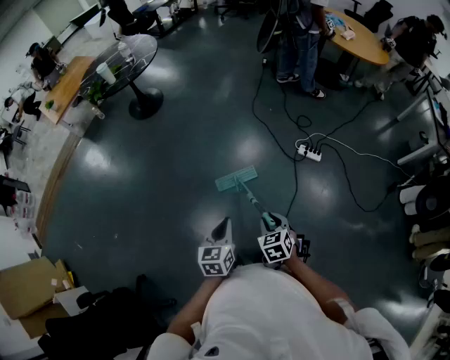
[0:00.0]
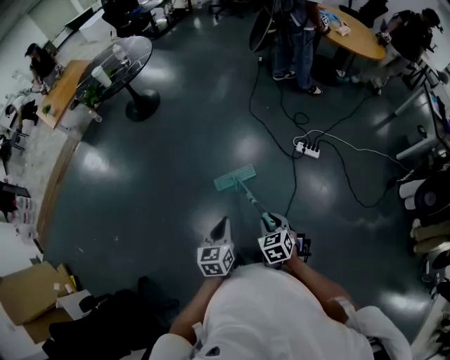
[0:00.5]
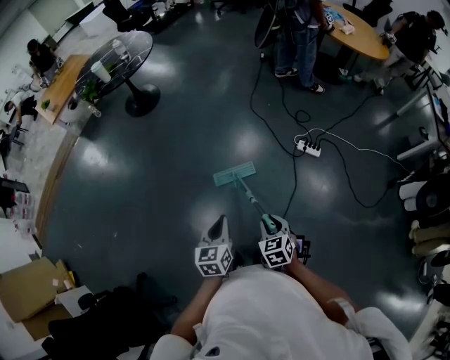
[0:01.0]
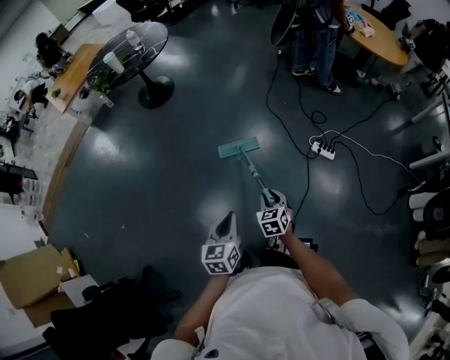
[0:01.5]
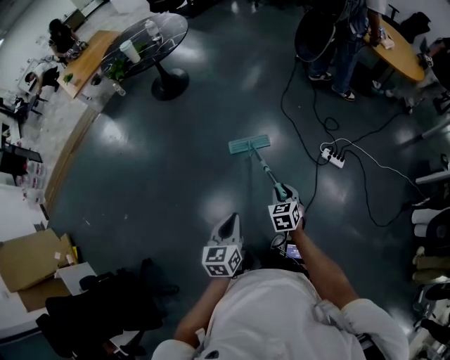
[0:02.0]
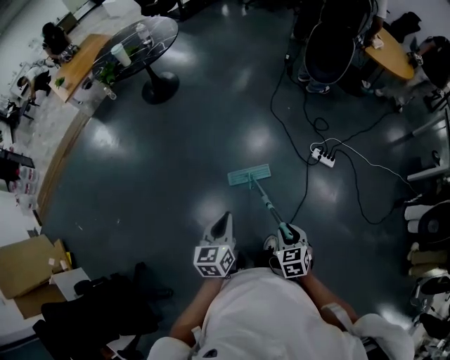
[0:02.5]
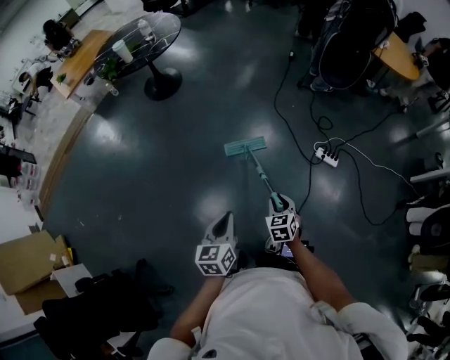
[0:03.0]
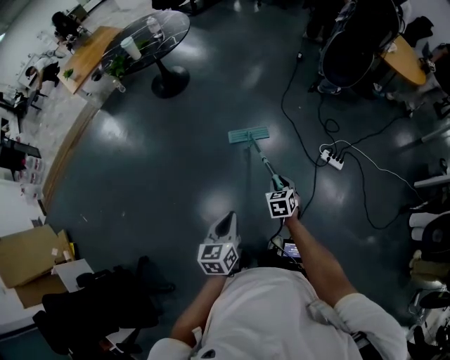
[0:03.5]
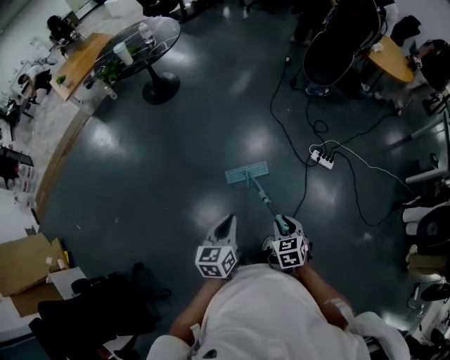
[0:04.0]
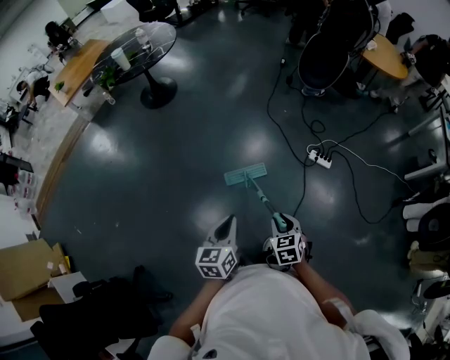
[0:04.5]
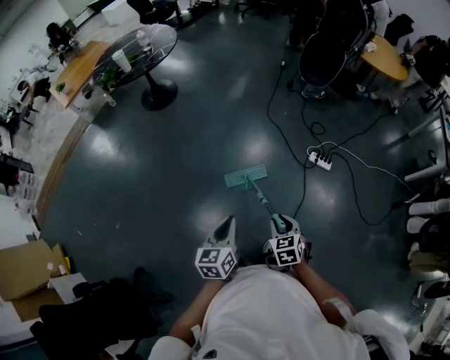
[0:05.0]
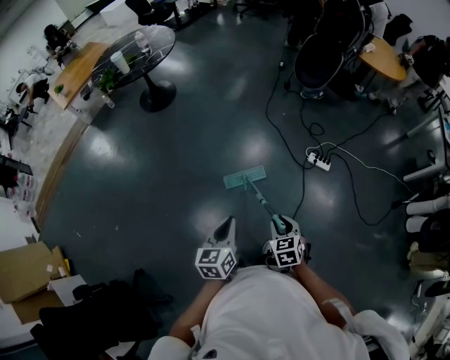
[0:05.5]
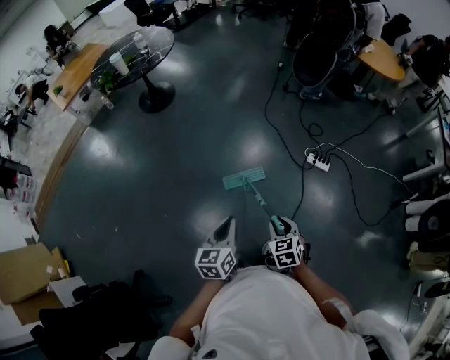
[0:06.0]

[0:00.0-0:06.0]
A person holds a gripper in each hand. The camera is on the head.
0:00.0 to 0:02.0: The right gripper moves forward, approximately 15 cm. Meanwhile the left gripper goes approximately 5 cm to the left.
0:02.0 to 0:04.0: The right gripper goes forward and backward, roughly 20 cm each way, reversing 2 times.
0:04.0 to 0:06.0: Both grippers stay about where they are.

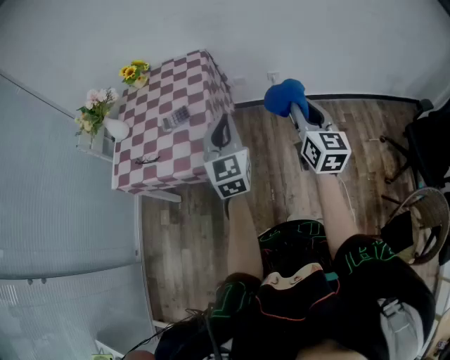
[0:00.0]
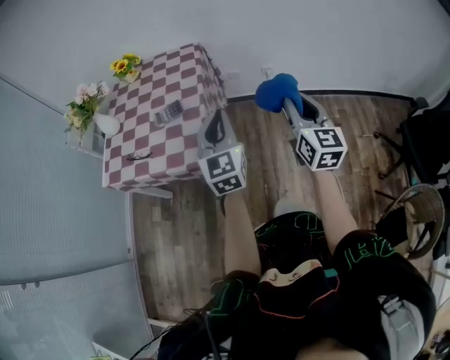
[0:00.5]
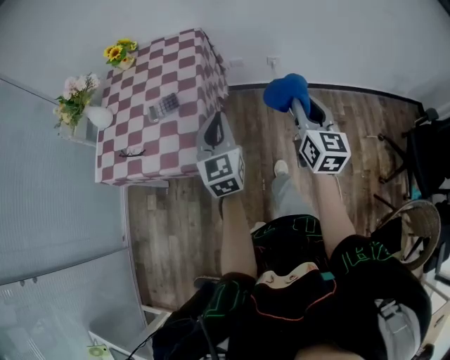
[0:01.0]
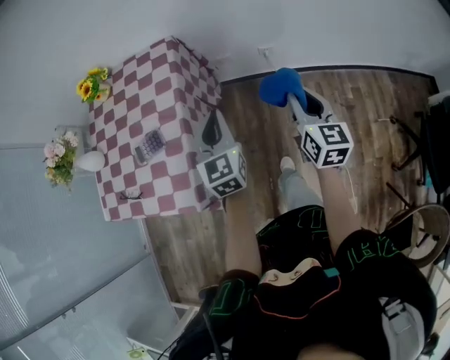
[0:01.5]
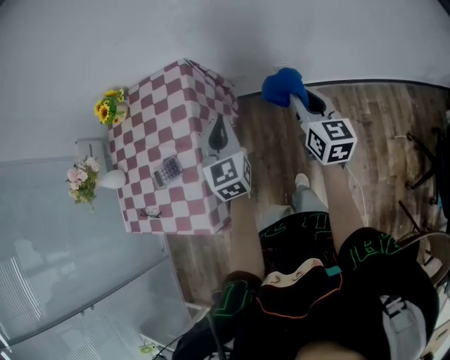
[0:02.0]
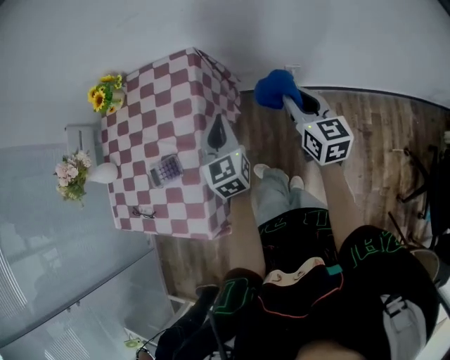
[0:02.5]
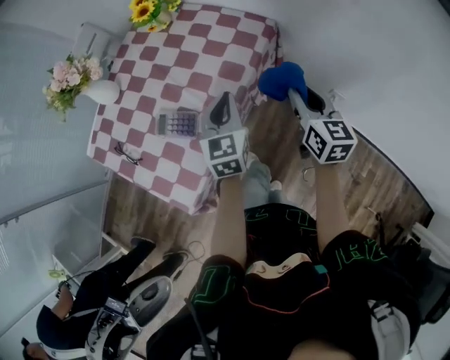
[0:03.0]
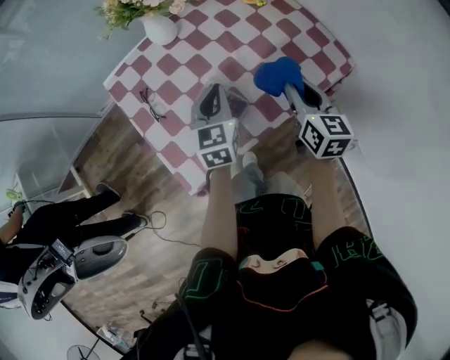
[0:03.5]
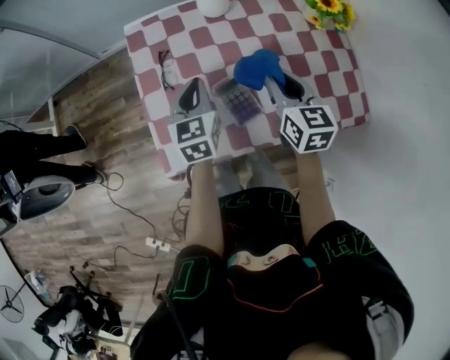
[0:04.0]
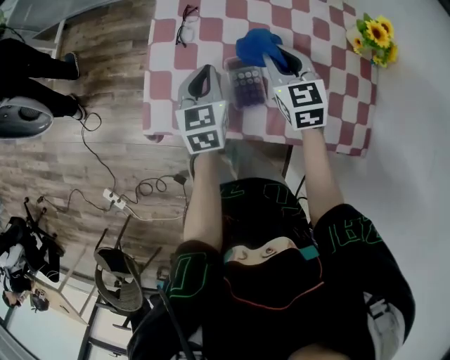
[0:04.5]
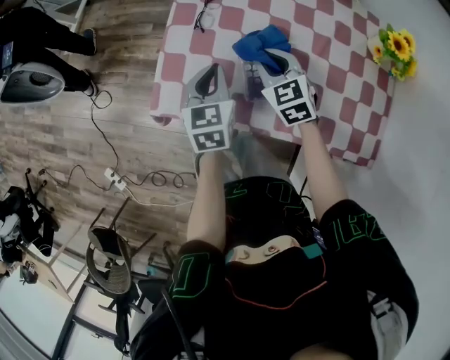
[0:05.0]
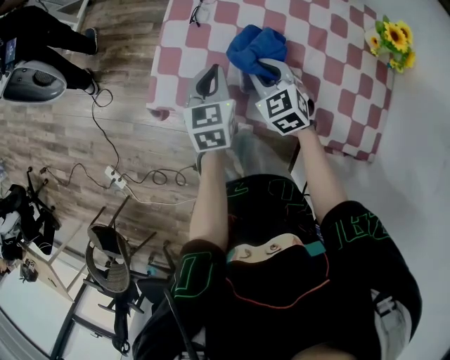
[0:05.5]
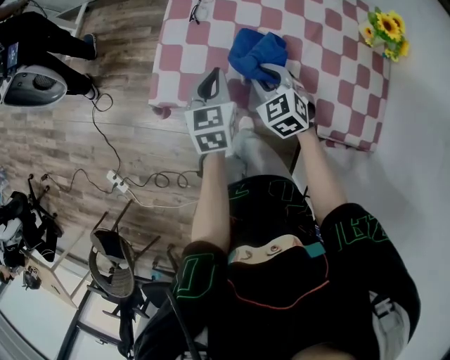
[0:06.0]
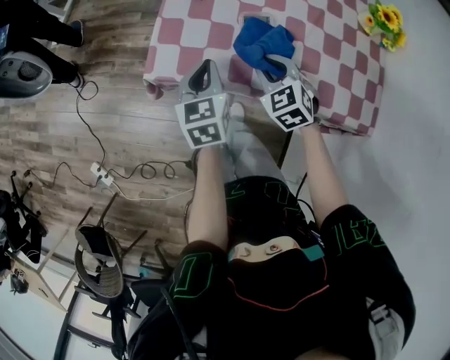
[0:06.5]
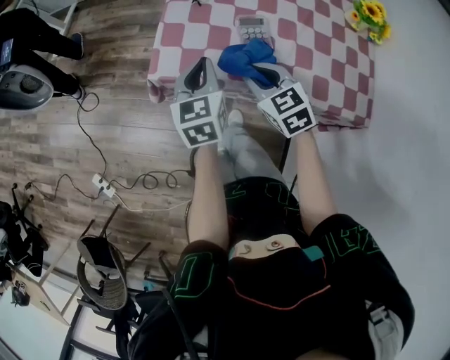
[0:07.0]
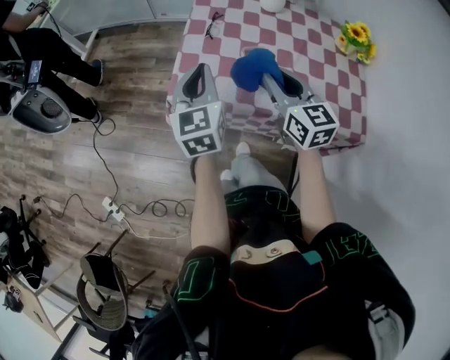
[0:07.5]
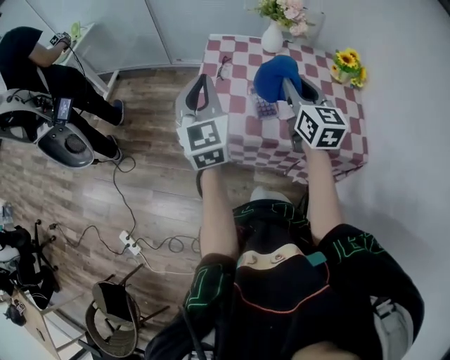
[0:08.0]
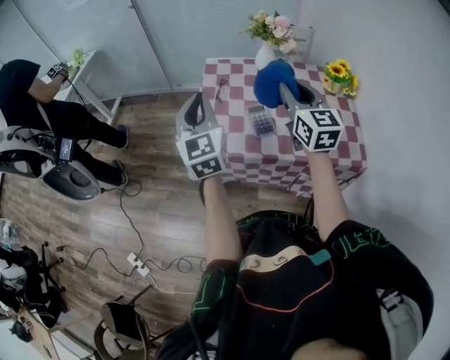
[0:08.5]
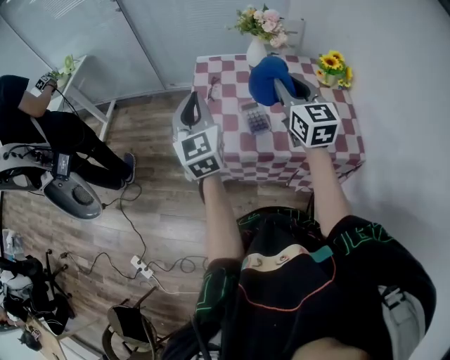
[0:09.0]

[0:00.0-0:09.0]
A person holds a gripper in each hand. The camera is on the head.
0:00.0 to 0:02.0: Both grippers move forward, approximately 35 cm.
0:02.0 to 0:04.5: The pair of grippers is taken about 50 cm. The left gripper changes its angle by about 90 degrees. Meanwhile the right gripper rotates roughly 110 degrees.
0:04.5 to 0:07.0: Both grippers move backward and to the left, about 20 cm.
0:07.0 to 0:09.0: Both grippers move upward, some 25 cm. The left gripper turns by some 30 degrees. The right gripper angles its fingers upward, by about 40 degrees.

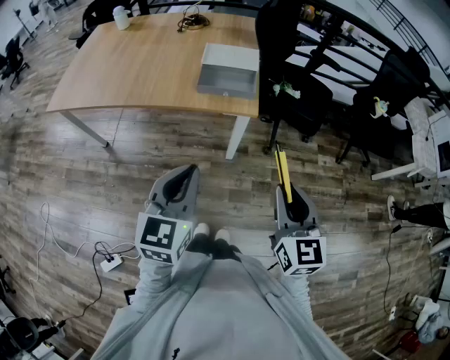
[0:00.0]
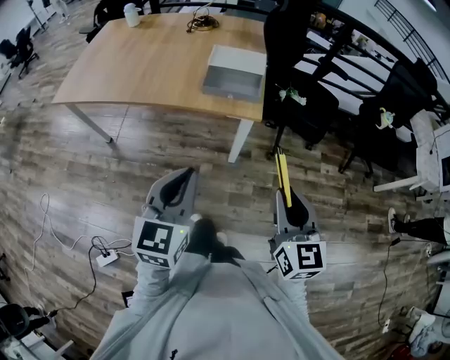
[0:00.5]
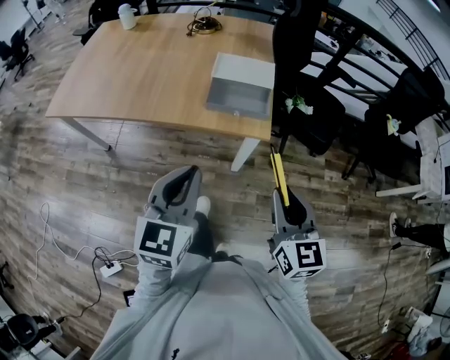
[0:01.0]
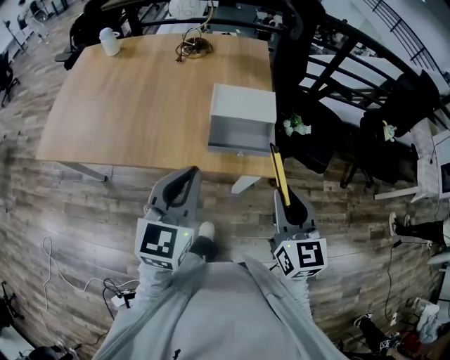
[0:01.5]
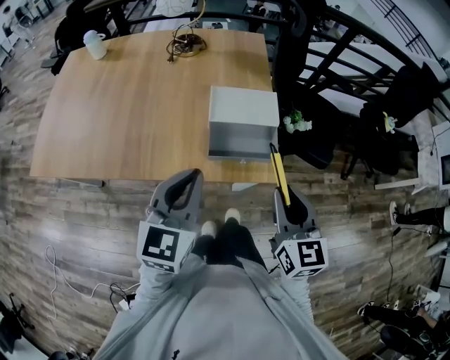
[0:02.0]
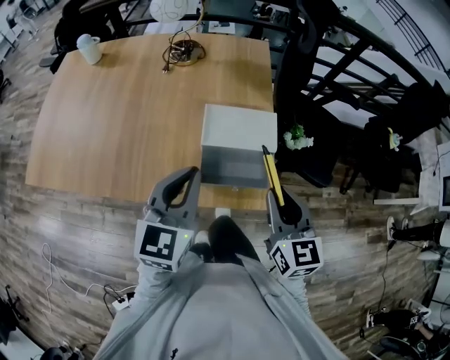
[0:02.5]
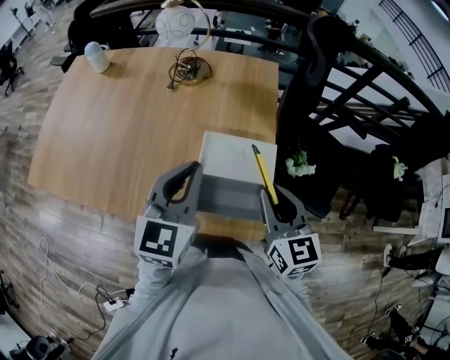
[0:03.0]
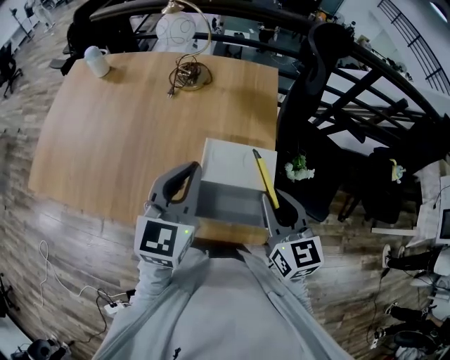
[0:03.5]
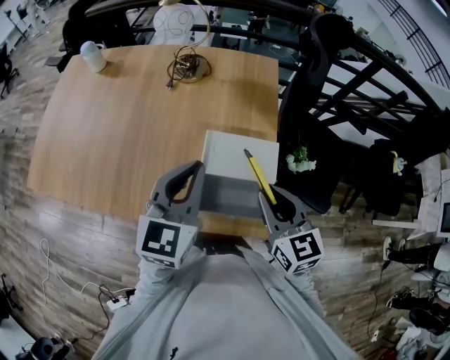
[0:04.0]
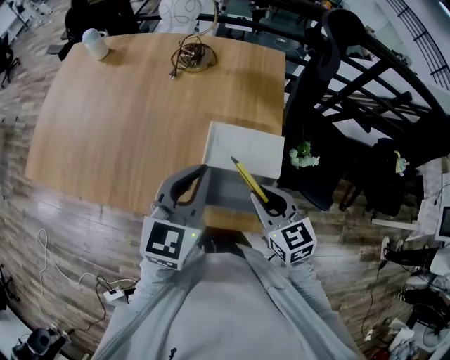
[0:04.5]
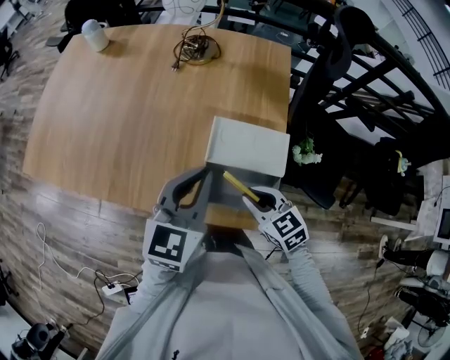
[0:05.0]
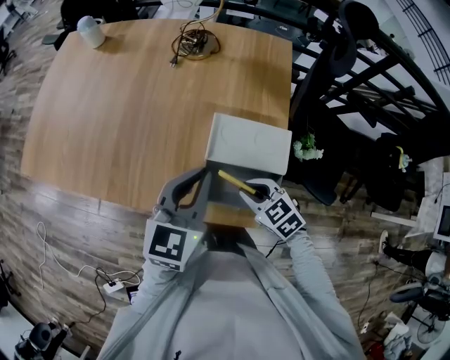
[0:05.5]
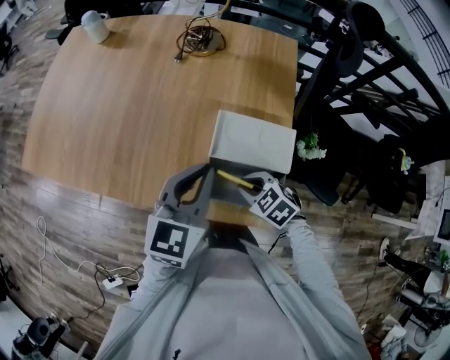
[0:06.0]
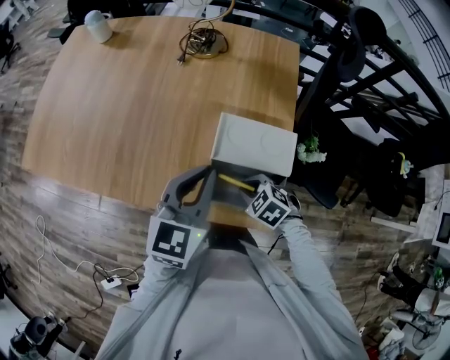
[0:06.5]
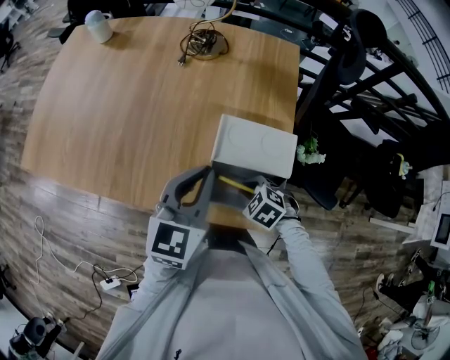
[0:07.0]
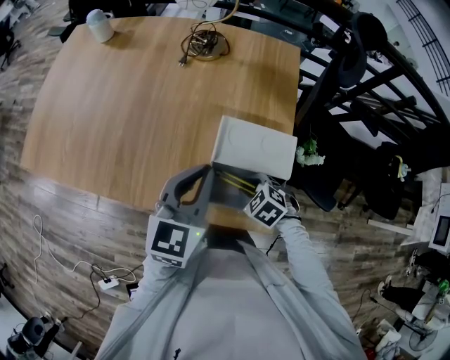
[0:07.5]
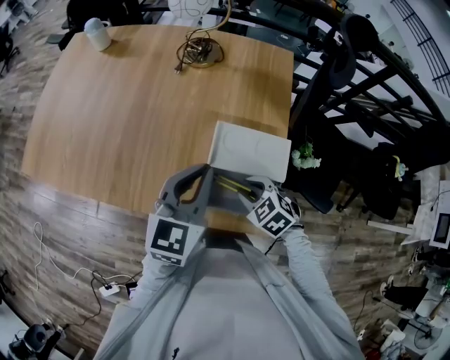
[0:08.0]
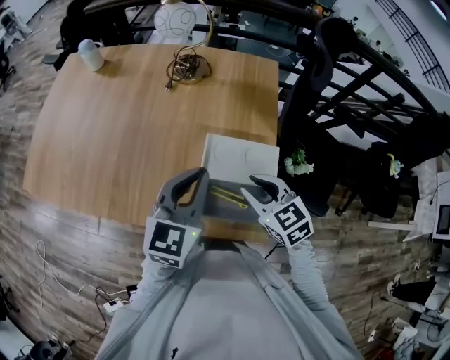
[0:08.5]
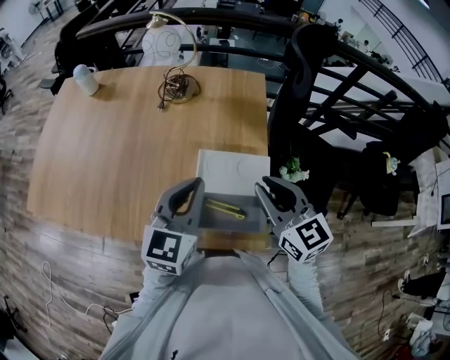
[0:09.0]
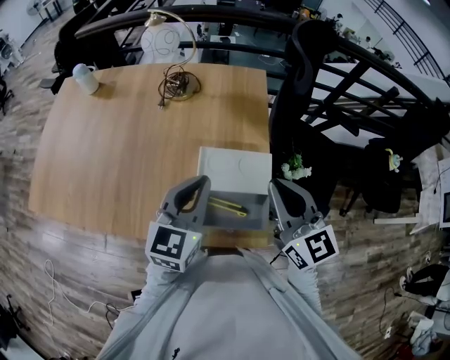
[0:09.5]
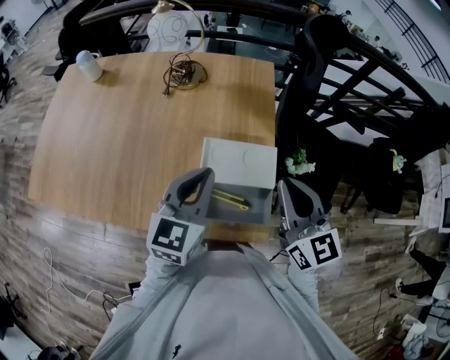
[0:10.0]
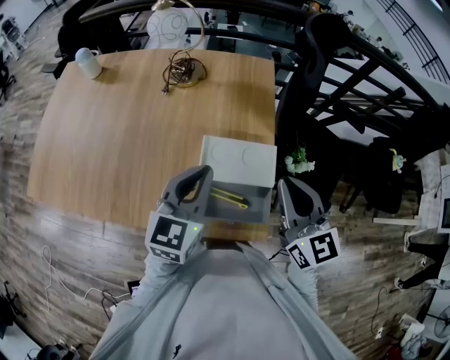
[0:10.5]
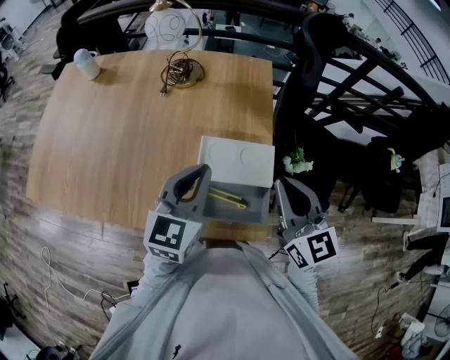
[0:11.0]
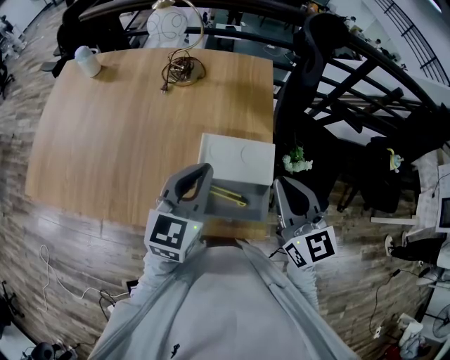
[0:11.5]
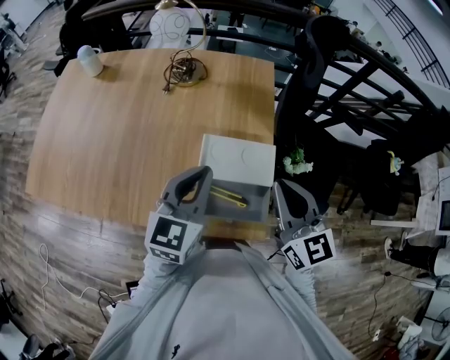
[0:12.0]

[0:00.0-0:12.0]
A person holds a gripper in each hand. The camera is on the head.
0:00.0 to 0:02.0: Both grippers travel together forward, some 30 cm.
0:02.0 to 0:04.0: Both grippers move forward, approximately 20 cm.
0:04.0 to 0:06.0: The right gripper heads downward, covering some 20 cm, and angles its fingers downward, by some 40 degrees. Meanwhile the left gripper travels downward by approximately 5 cm.
0:06.0 to 0:08.0: The grippers move only a little.
0:08.0 to 0:10.0: The right gripper moves upward, approximately 25 cm, tips its fingers upward by about 50 degrees, and closes its fingers.
0:10.0 to 0:12.0: The grippers make only small movements.
